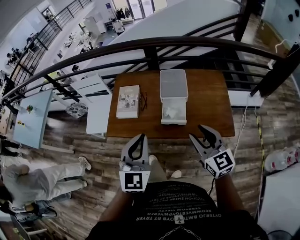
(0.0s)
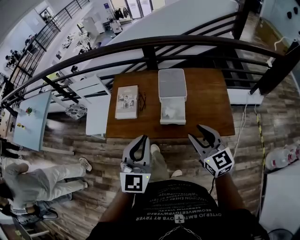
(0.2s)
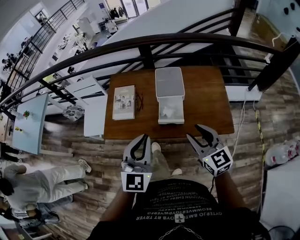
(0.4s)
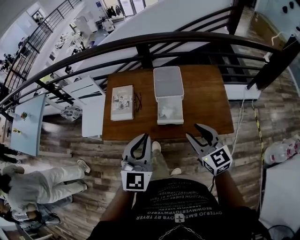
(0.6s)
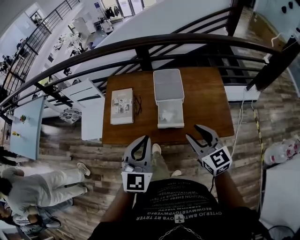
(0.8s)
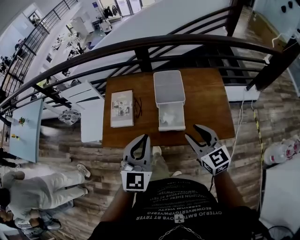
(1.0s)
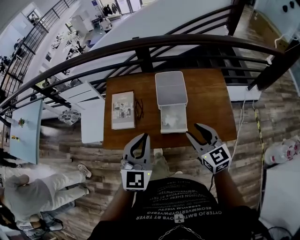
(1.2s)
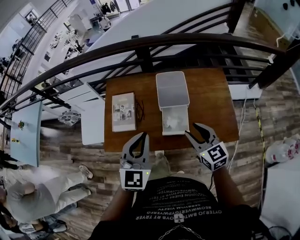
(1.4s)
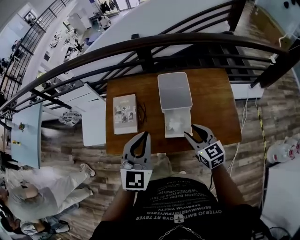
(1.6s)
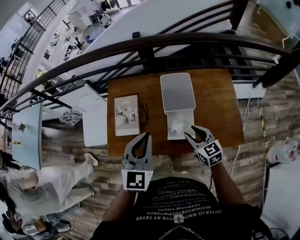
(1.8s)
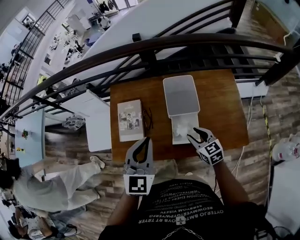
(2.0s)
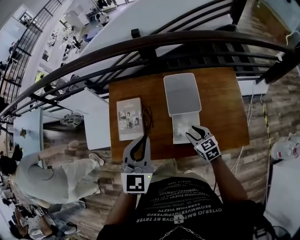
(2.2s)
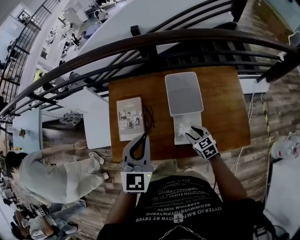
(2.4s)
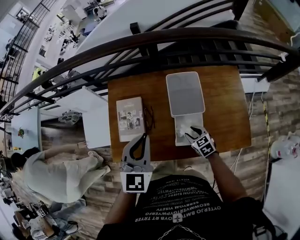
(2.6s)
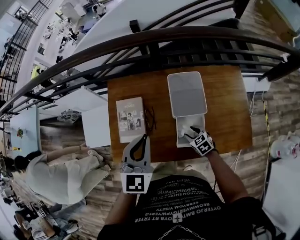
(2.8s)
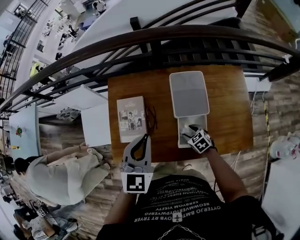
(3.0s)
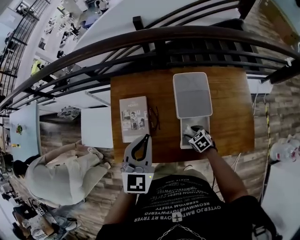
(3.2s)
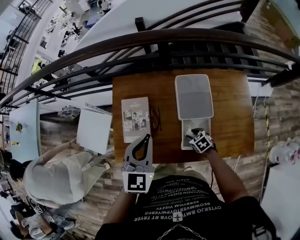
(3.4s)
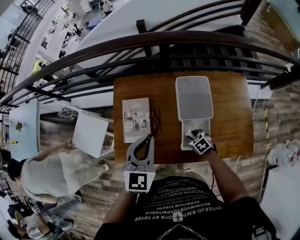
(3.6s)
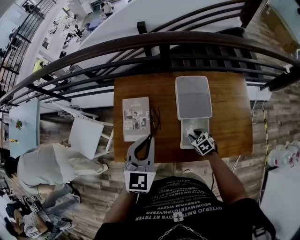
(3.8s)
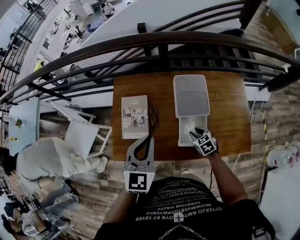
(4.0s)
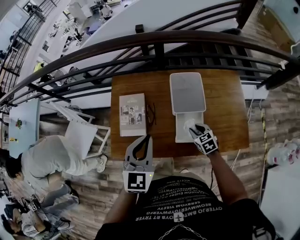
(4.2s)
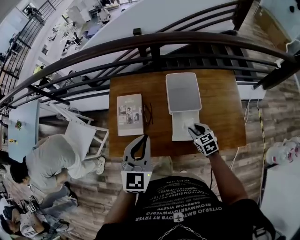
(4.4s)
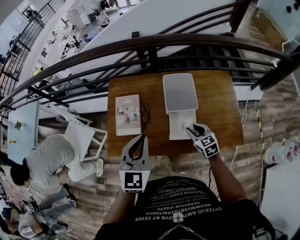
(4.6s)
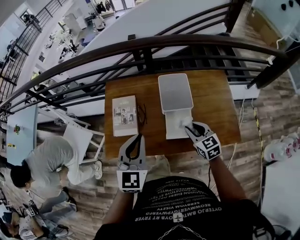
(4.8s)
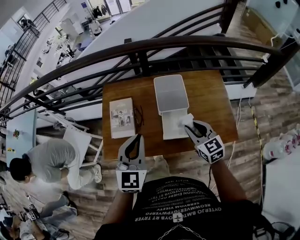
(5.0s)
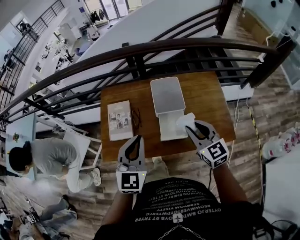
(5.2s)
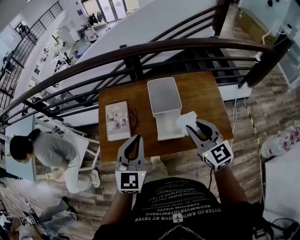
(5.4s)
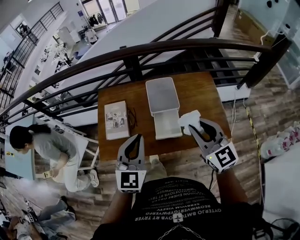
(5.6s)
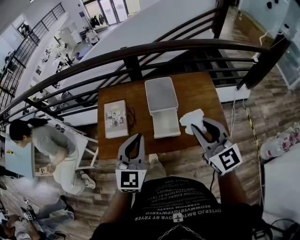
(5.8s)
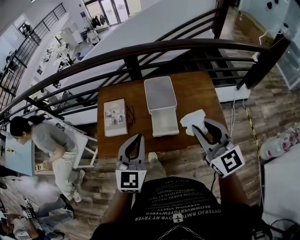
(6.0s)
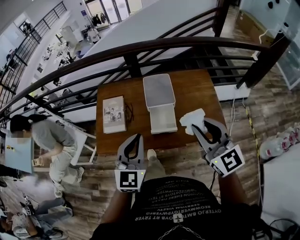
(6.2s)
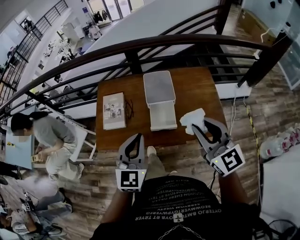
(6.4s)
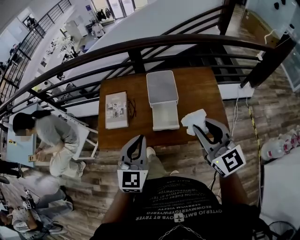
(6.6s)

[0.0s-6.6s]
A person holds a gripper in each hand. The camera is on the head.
0.0s to 1.6s: The left gripper heads forward, covering about 20 cm, while the right gripper shifts about 20 cm forward and downward.
1.6s to 3.2s: The right gripper moves downward and forward, about 30 cm, and points its fingers about 40 degrees further downward. Meanwhile the left gripper travels forward, downward and to the left by some 15 cm.
3.2s to 5.0s: The left gripper moves backward, about 15 cm; the right gripper shifts approximately 25 cm upward, tilts its fingers some 40 degrees upward, and closes.
5.0s to 6.6s: The right gripper is displaced upward and backward by approximately 25 cm, and changes its angle by approximately 20 degrees; the left gripper shifts approximately 10 cm backward and to the right.

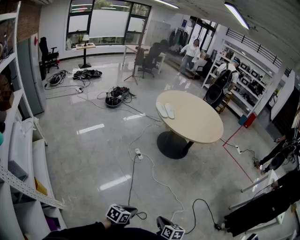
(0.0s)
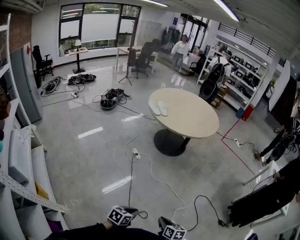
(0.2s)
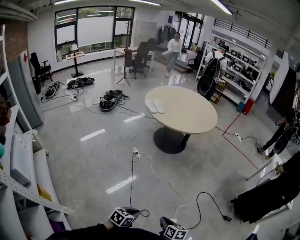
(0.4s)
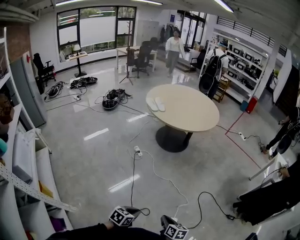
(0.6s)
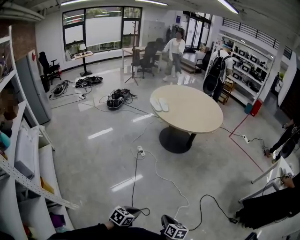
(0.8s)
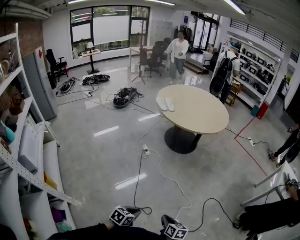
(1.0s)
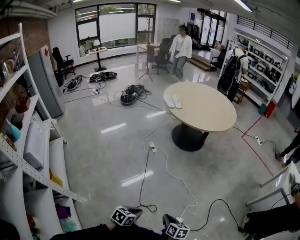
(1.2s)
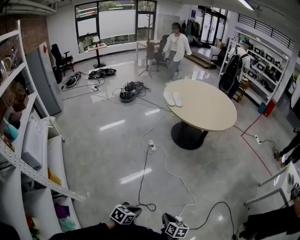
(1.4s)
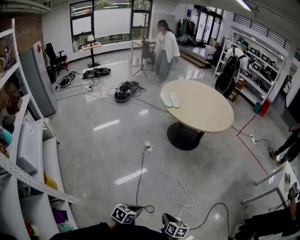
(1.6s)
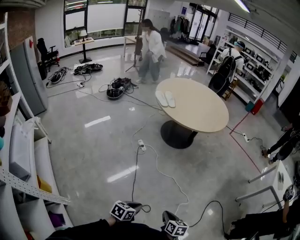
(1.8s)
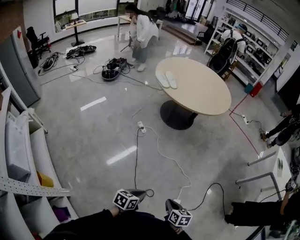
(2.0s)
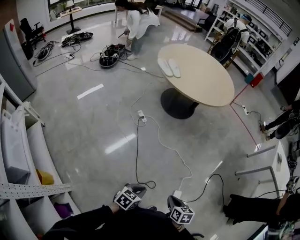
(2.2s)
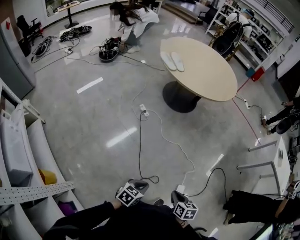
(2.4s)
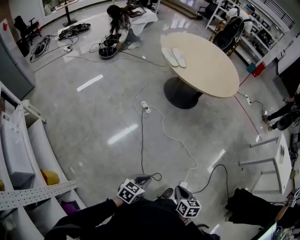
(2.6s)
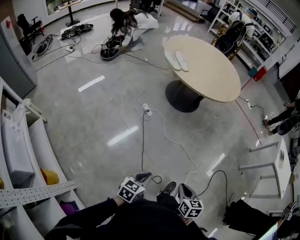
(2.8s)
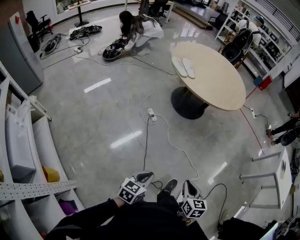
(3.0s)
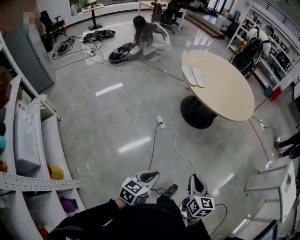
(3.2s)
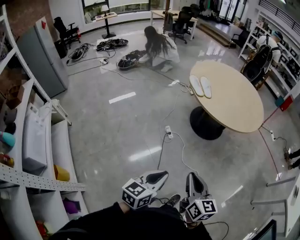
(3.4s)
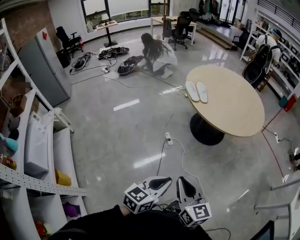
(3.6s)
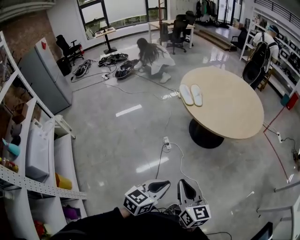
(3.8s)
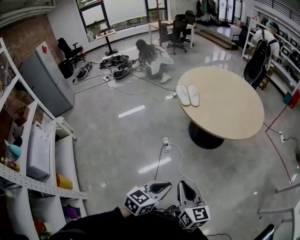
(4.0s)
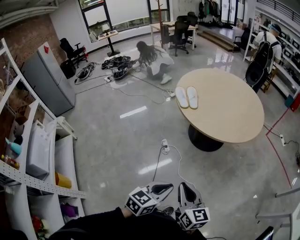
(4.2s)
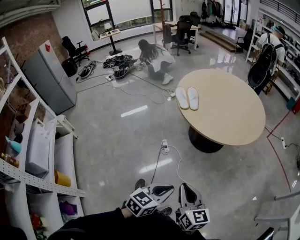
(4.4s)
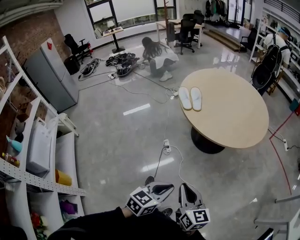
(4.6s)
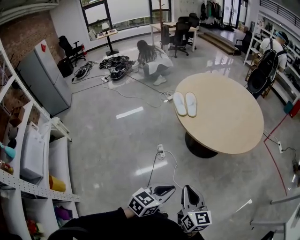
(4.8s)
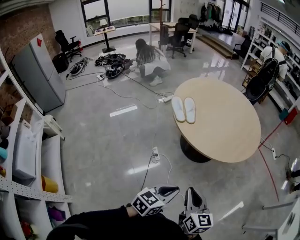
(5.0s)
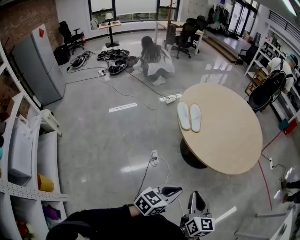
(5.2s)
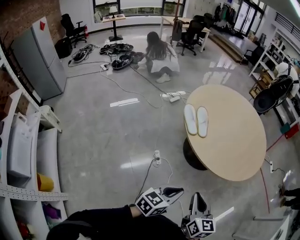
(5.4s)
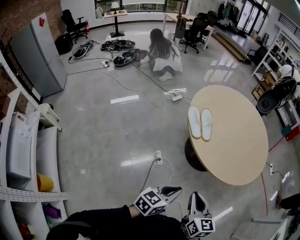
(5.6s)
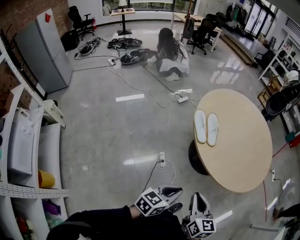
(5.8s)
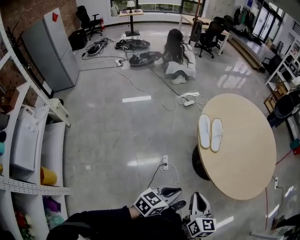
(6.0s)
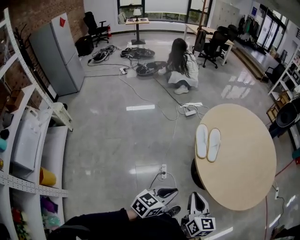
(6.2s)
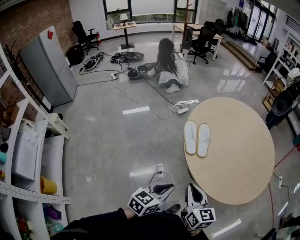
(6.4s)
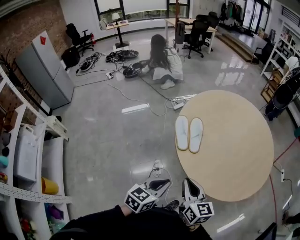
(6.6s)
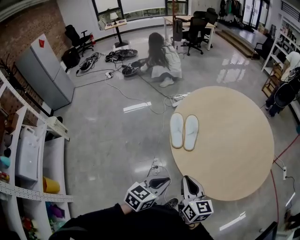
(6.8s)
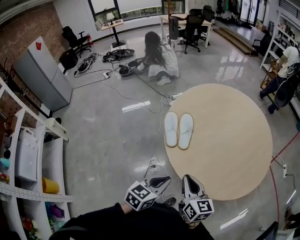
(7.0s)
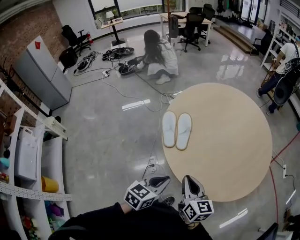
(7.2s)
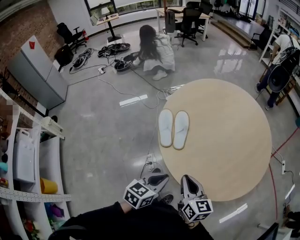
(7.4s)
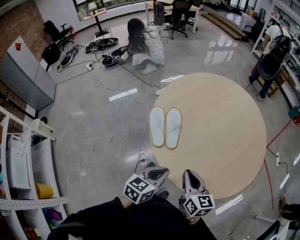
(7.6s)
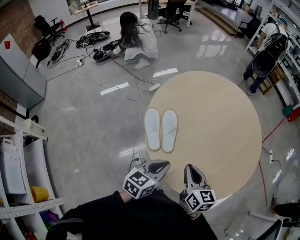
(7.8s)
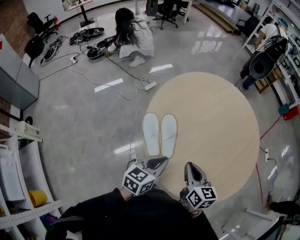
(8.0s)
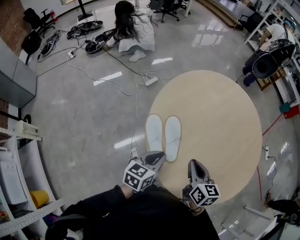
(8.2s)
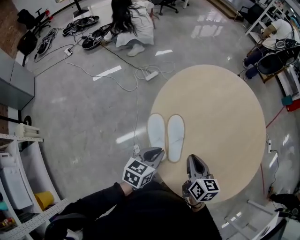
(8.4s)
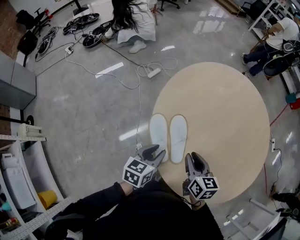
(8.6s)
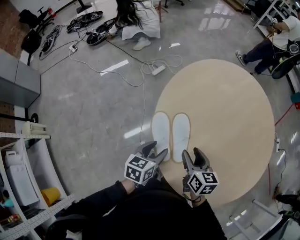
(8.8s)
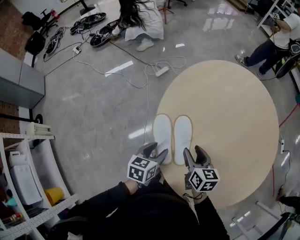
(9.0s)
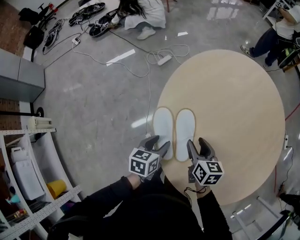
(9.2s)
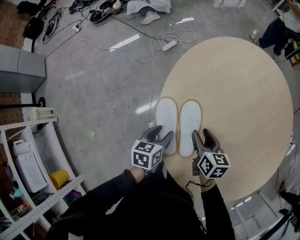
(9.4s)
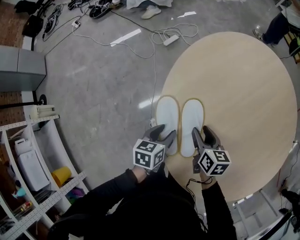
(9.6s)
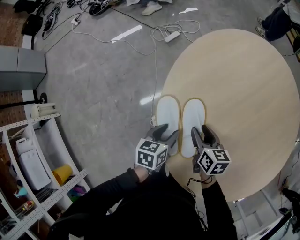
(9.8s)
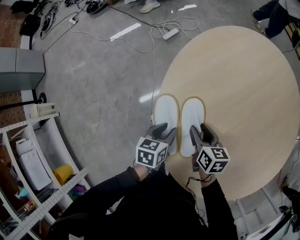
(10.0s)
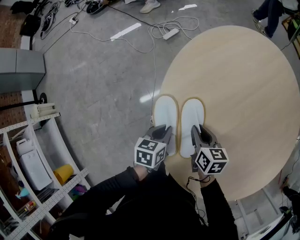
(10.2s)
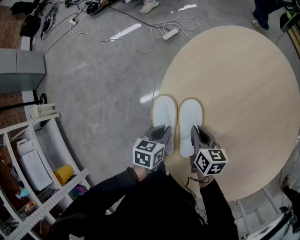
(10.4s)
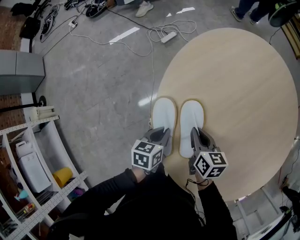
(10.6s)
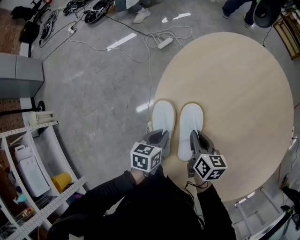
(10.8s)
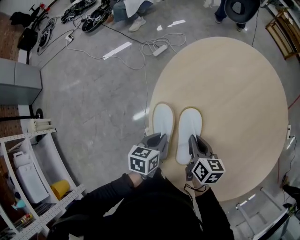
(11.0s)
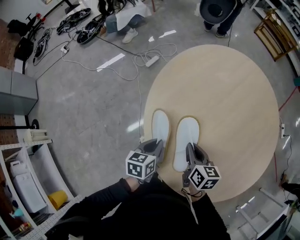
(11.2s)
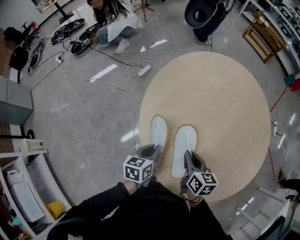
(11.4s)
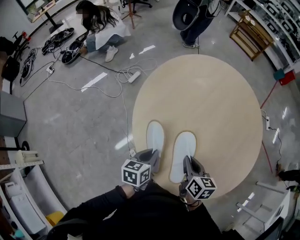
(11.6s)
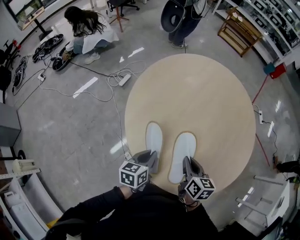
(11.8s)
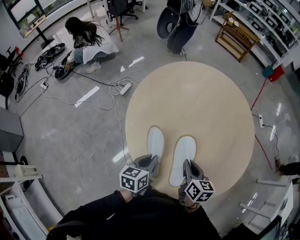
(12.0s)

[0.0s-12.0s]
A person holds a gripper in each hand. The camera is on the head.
0.0s to 1.6s: Both grippers travel together to the right, some 10 cm.
1.6s to 3.0s: The left gripper is displaced to the left and forward by roughly 25 cm. The right gripper travels to the left, forward and upward by some 25 cm, and turns by some 30 degrees.
3.0s to 4.4s: The right gripper goes approximately 30 cm forward, to the right and upward, and changes its angle by roughly 30 degrees. Meanwhile the left gripper travels to the right, forward and upward by roughly 40 cm.
4.4s to 6.0s: The grippers both shift forward and to the left by approximately 40 cm.
6.0s to 7.6s: The grippers both shift forward and to the right by some 35 cm.
7.6s to 9.0s: Both grippers move forward, to the left and downward, roughly 30 cm. The right gripper opens up. Meanwhile the left gripper opens.
9.0s to 10.4s: Both grippers travel together downward and forward, some 15 cm. The left gripper closes. Meanwhile the right gripper closes up.
10.4s to 12.0s: The left gripper travels upward by roughly 15 cm, and swivels some 30 degrees. Meanwhile the right gripper changes place by roughly 25 cm, and changes its angle by some 30 degrees.

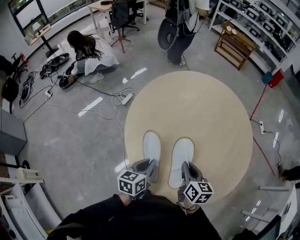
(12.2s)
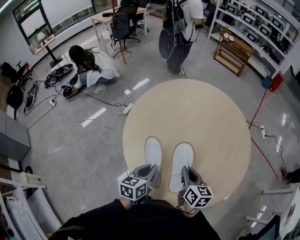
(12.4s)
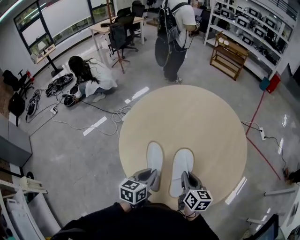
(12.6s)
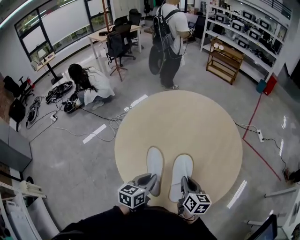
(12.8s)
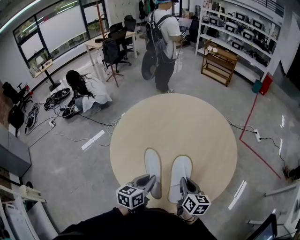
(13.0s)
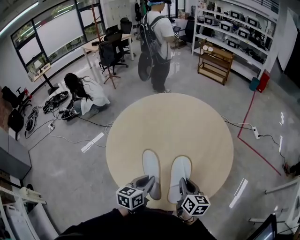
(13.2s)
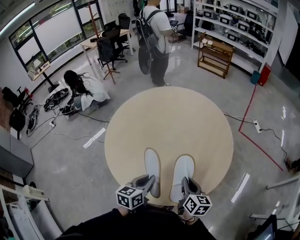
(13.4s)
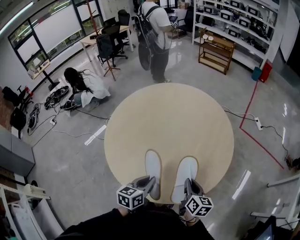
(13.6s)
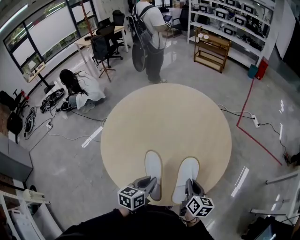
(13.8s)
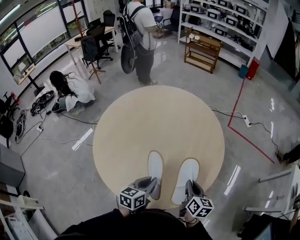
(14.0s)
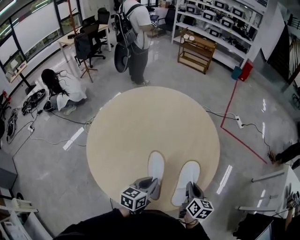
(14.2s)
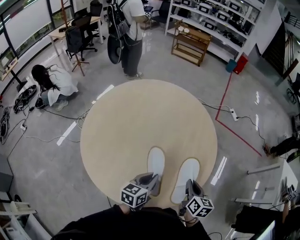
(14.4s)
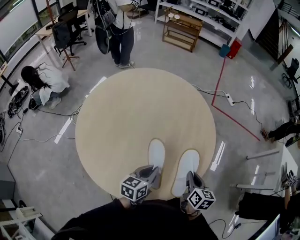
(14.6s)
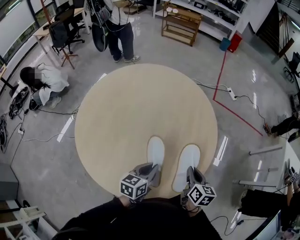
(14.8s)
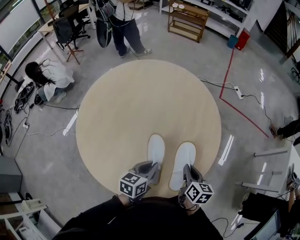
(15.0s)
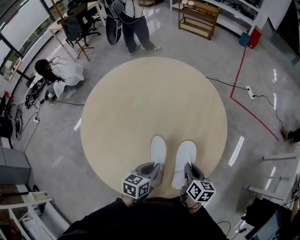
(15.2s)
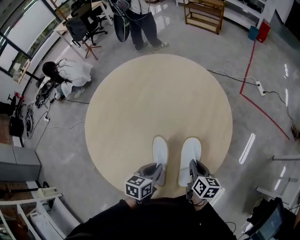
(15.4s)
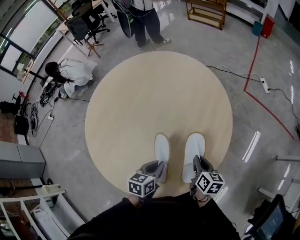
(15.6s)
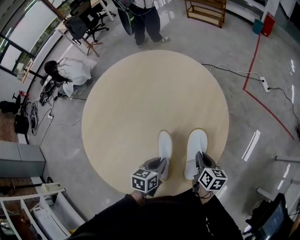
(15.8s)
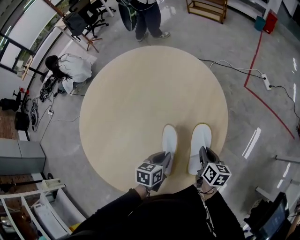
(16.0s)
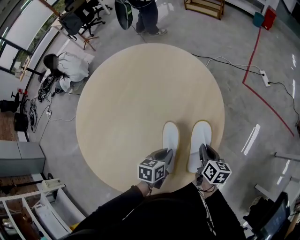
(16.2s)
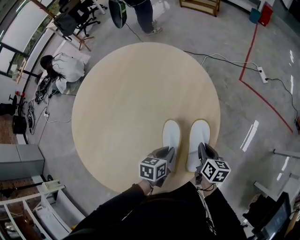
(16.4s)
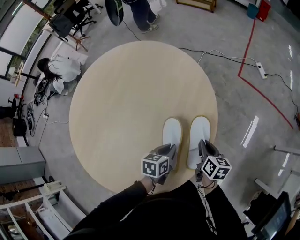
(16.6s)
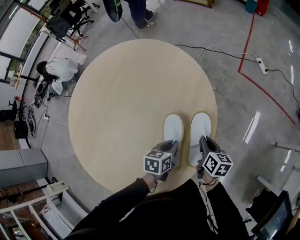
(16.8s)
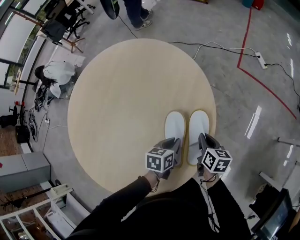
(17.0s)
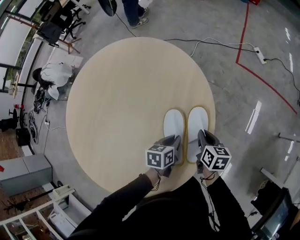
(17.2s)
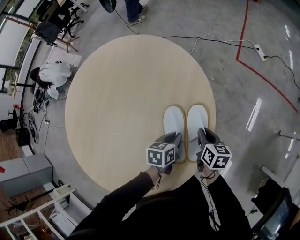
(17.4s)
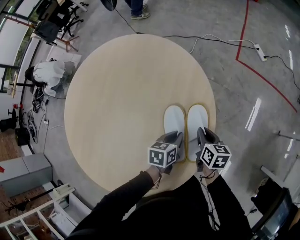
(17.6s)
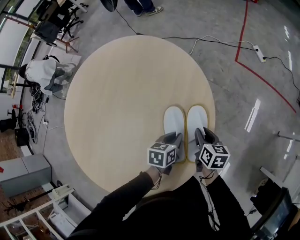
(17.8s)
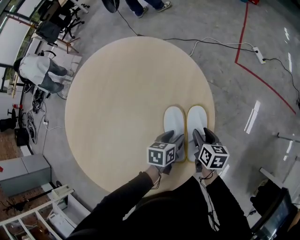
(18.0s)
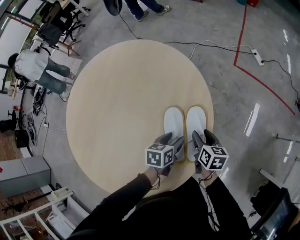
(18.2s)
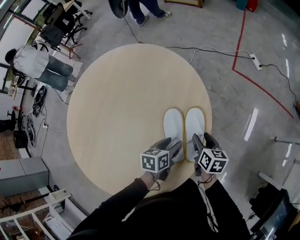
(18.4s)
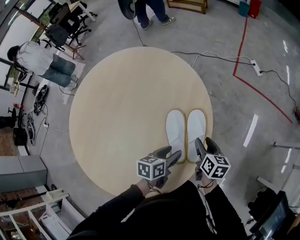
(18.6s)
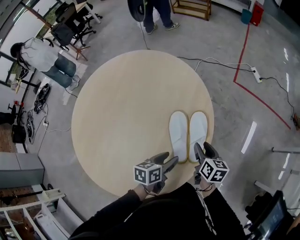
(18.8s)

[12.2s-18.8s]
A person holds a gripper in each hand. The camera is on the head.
12.2s to 13.8s: Both grippers move to the right, about 30 cm.
13.8s to 15.4s: The right gripper is displaced forward, downward and to the right by about 15 cm. The left gripper moves forward, to the right and downward, some 20 cm.
15.4s to 17.2s: The left gripper is displaced to the right, forward and downward by roughly 30 cm. The right gripper heads forward, to the right and downward, covering some 25 cm.
17.2s to 18.8s: The grippers both shift backward and upward by some 10 cm. The right gripper opens up; the left gripper opens its fingers.
